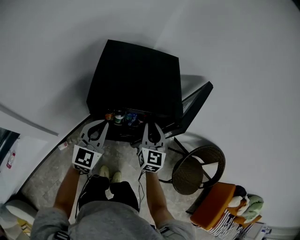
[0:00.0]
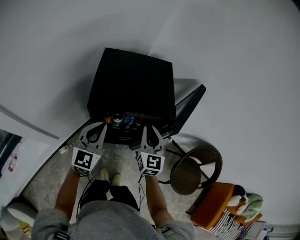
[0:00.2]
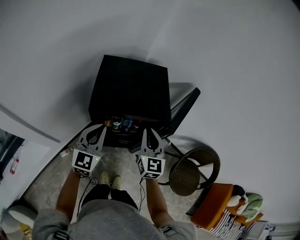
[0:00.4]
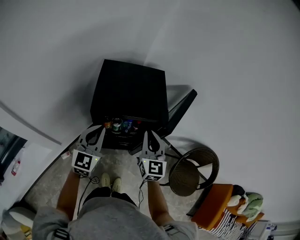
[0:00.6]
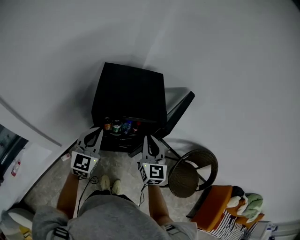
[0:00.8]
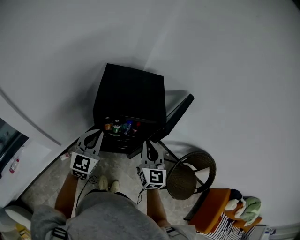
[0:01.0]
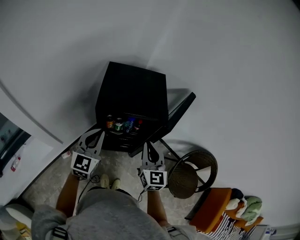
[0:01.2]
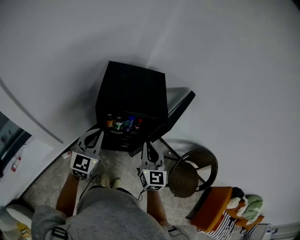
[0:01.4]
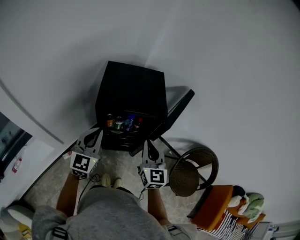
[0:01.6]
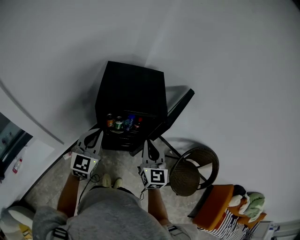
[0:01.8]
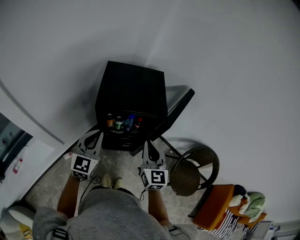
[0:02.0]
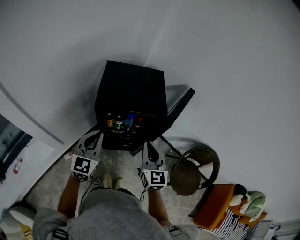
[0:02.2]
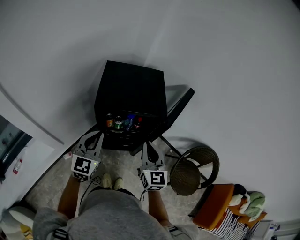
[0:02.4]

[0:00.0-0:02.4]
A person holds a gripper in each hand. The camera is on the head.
0:00.0 to 0:01.2: The left gripper shifts roughly 15 cm upward and backward. The right gripper goes about 15 cm backward and upward.
0:01.2 to 0:02.4: The grippers move only a little.

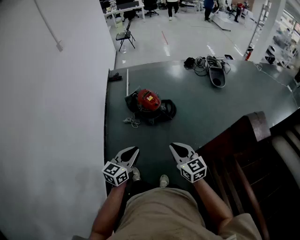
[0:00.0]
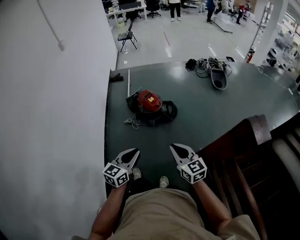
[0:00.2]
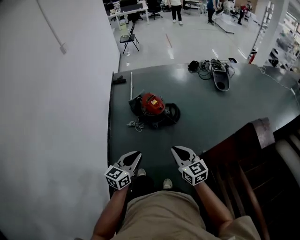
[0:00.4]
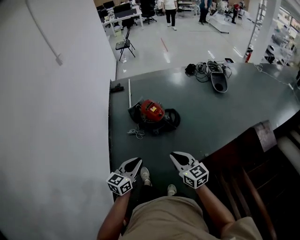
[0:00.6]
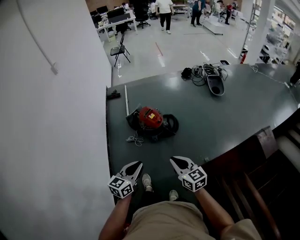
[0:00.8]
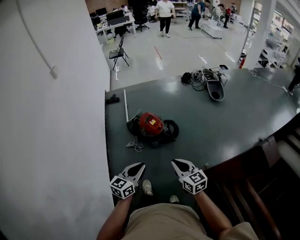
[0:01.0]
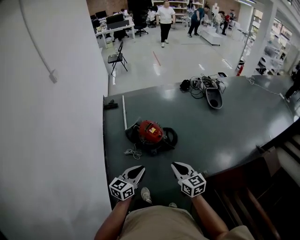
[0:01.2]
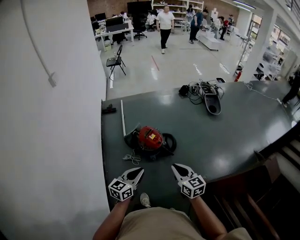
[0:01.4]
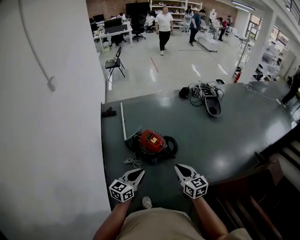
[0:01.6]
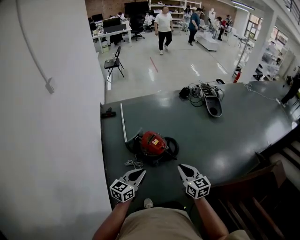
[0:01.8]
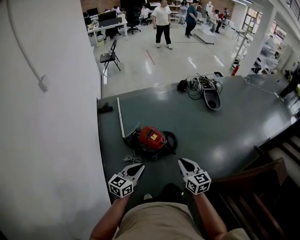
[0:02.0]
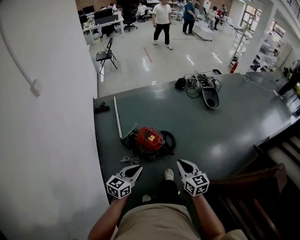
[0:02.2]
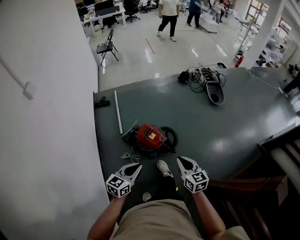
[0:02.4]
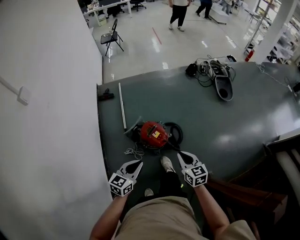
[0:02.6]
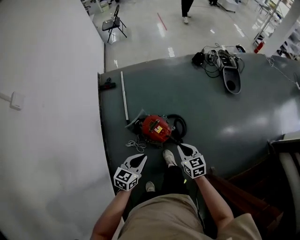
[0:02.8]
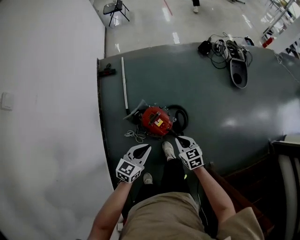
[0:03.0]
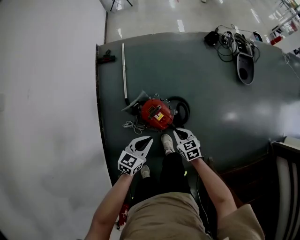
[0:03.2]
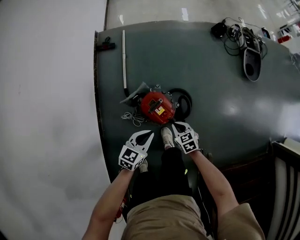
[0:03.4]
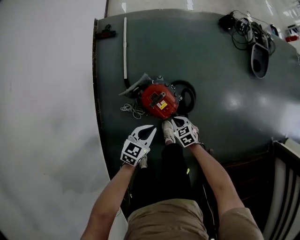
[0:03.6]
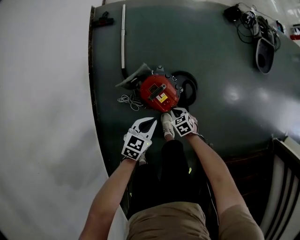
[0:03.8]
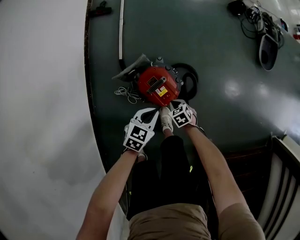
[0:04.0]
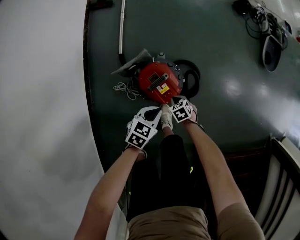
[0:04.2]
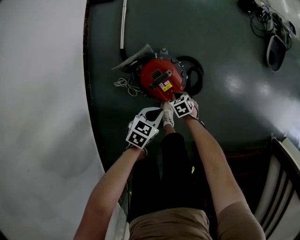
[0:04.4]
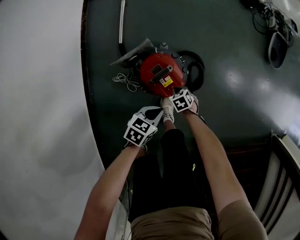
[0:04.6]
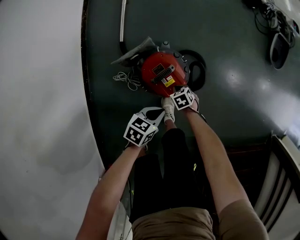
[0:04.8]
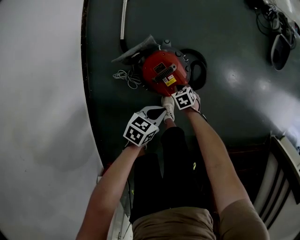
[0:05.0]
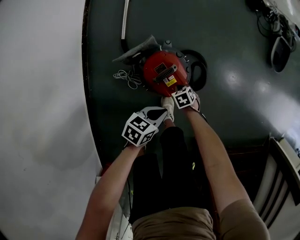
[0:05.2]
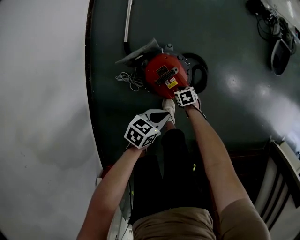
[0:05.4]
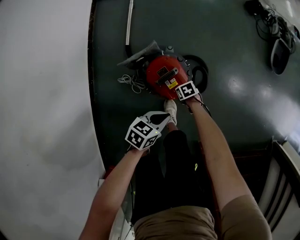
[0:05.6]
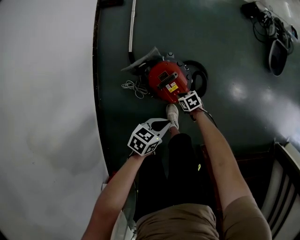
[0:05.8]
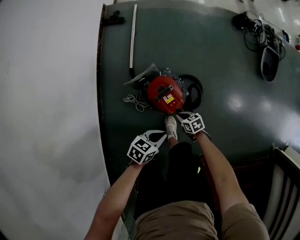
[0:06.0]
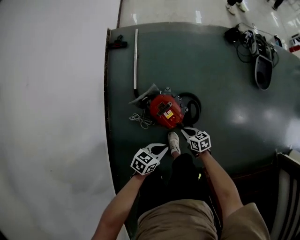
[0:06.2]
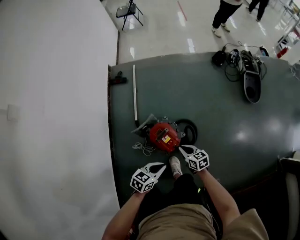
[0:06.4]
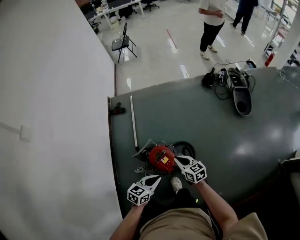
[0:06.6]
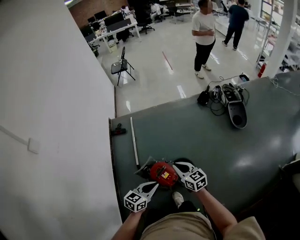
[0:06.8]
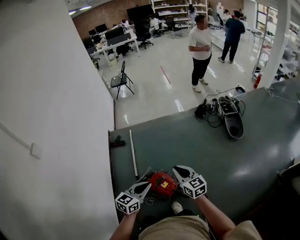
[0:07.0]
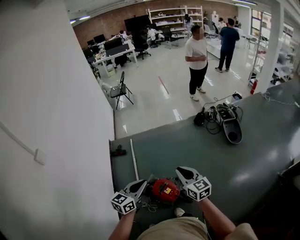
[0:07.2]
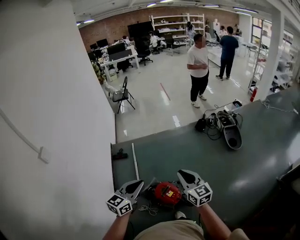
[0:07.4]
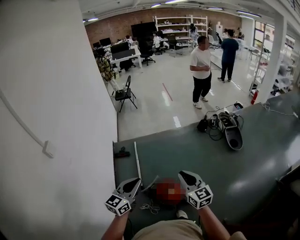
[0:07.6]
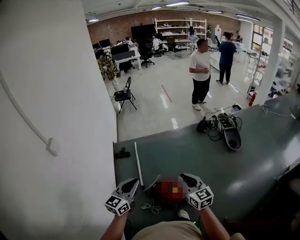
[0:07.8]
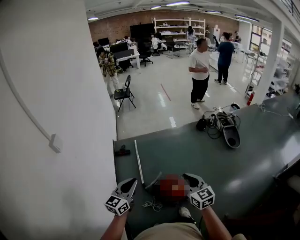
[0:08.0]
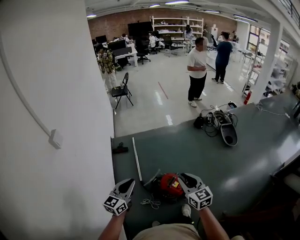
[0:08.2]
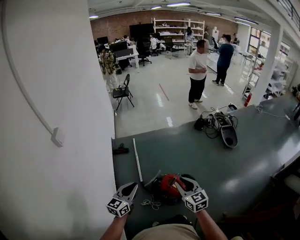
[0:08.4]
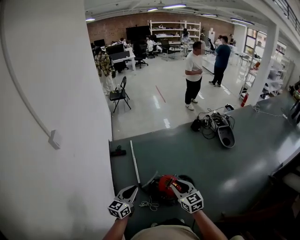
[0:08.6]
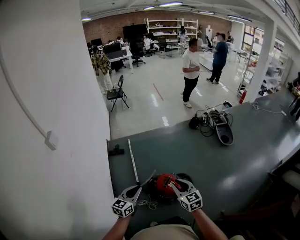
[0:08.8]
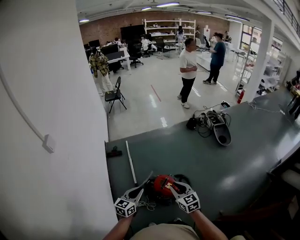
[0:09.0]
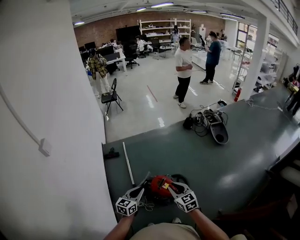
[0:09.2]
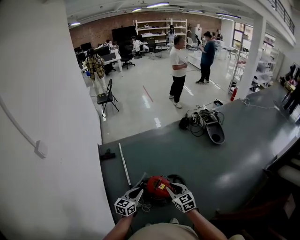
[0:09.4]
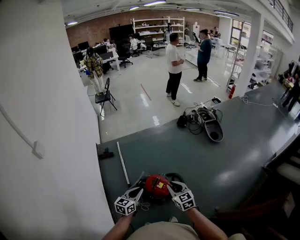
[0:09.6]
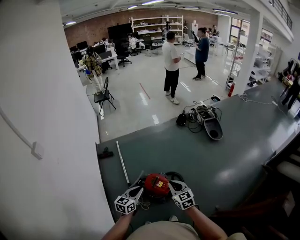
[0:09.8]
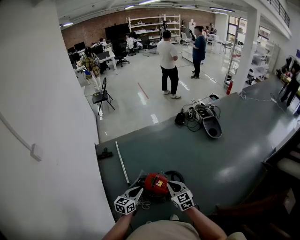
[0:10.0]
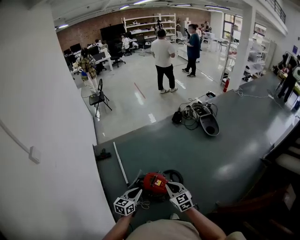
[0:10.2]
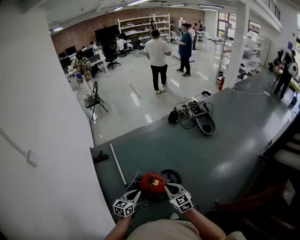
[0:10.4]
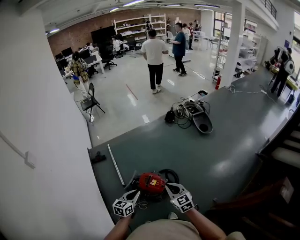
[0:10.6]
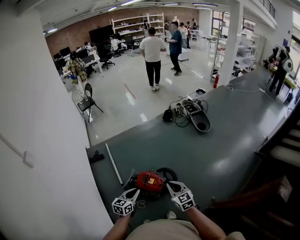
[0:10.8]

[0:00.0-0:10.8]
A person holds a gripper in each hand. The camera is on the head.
0:00.0 to 0:01.6: Both grippers travel together forward and to the left, approximately 30 cm.
0:01.6 to 0:03.0: The two grippers go approximately 40 cm forward and downward. The right gripper rotates approximately 20 degrees.
0:03.0 to 0:04.6: The two grippers go roughly 40 cm downward. The left gripper rotates about 30 degrees, while the right gripper tilts its fingers approximately 30 degrees downward.
0:04.6 to 0:06.2: The grippers both shift upward by roughly 20 cm. The right gripper points its fingers roughly 30 degrees further upward.
0:06.2 to 0:07.8: The two grippers go roughly 50 cm upward. The right gripper tilts its fingers roughly 30 degrees upward. The left gripper points its fingers approximately 40 degrees further upward.
0:07.8 to 0:09.2: The right gripper shifts roughly 15 cm downward and backward; the left gripper goes about 15 cm downward.
0:09.2 to 0:10.8: Both grippers travel together to the right, approximately 10 cm.

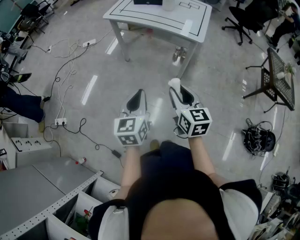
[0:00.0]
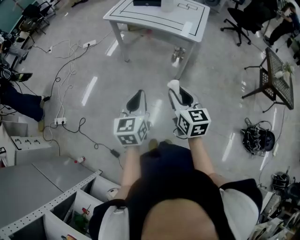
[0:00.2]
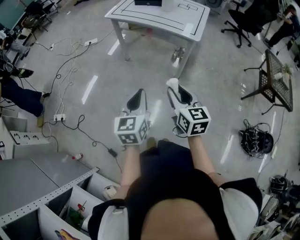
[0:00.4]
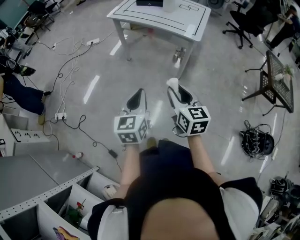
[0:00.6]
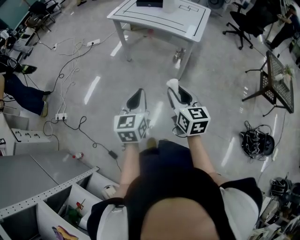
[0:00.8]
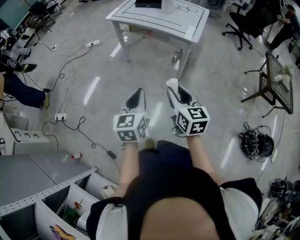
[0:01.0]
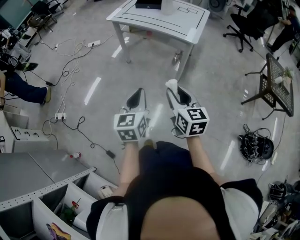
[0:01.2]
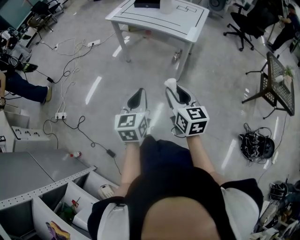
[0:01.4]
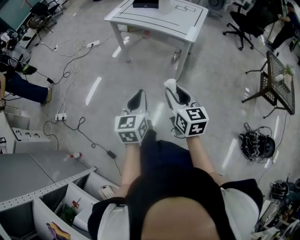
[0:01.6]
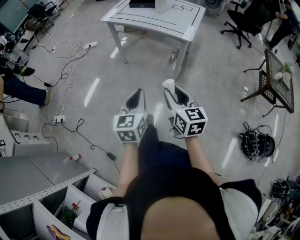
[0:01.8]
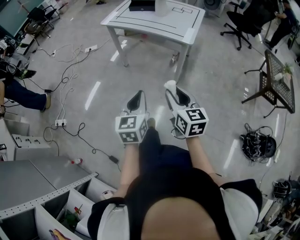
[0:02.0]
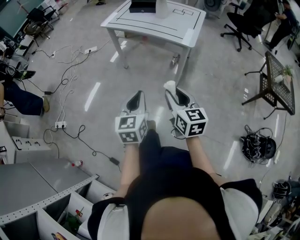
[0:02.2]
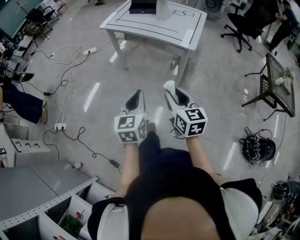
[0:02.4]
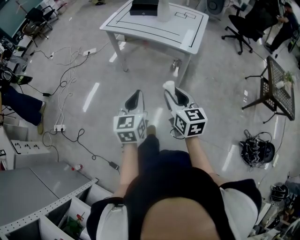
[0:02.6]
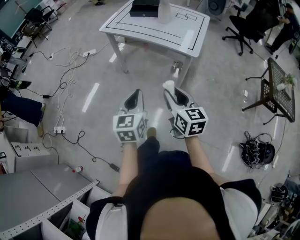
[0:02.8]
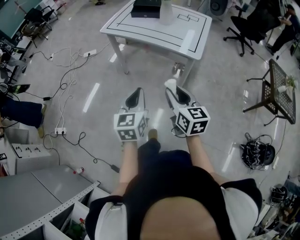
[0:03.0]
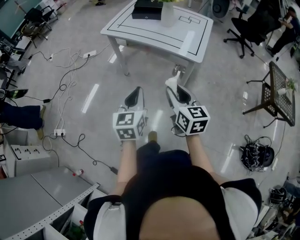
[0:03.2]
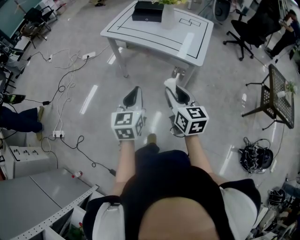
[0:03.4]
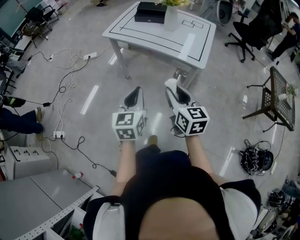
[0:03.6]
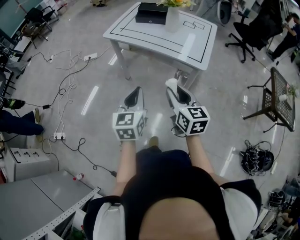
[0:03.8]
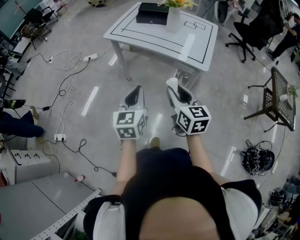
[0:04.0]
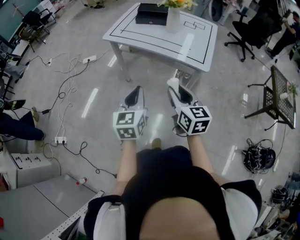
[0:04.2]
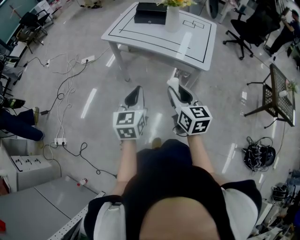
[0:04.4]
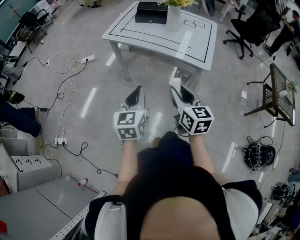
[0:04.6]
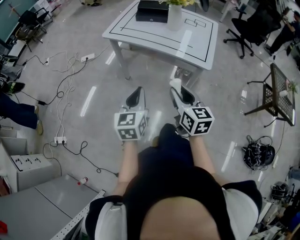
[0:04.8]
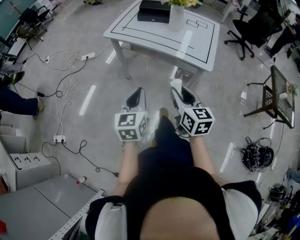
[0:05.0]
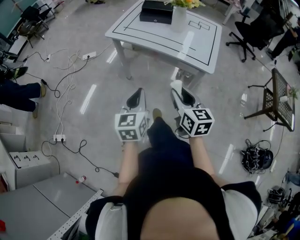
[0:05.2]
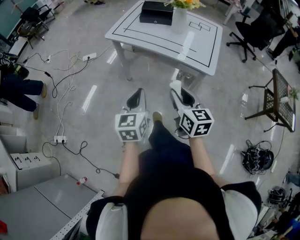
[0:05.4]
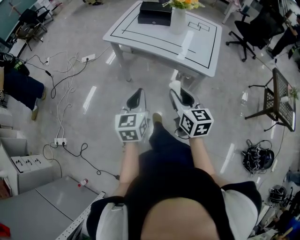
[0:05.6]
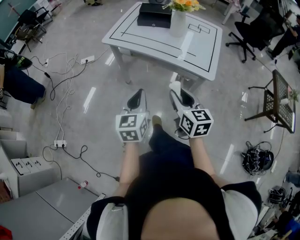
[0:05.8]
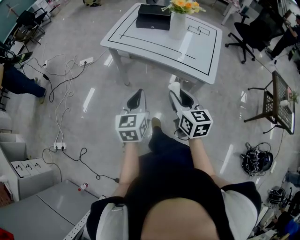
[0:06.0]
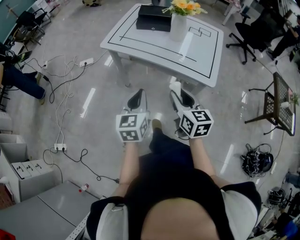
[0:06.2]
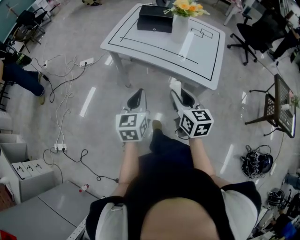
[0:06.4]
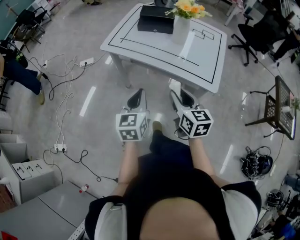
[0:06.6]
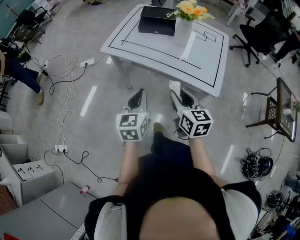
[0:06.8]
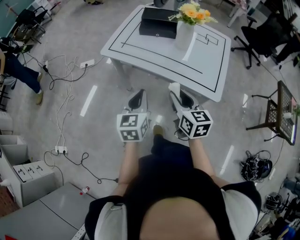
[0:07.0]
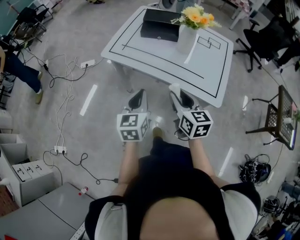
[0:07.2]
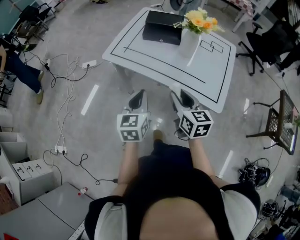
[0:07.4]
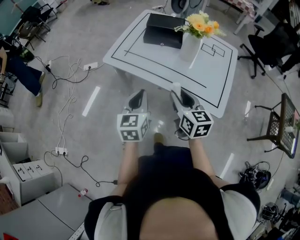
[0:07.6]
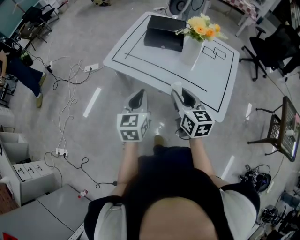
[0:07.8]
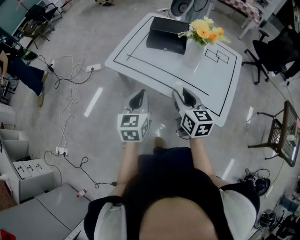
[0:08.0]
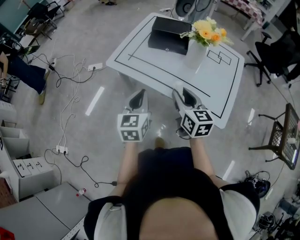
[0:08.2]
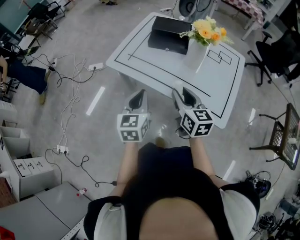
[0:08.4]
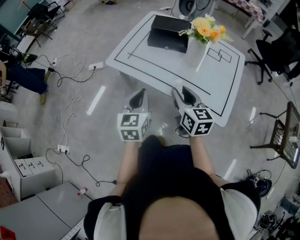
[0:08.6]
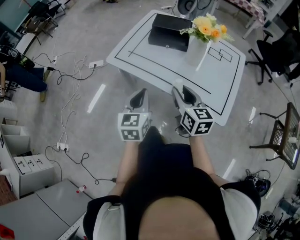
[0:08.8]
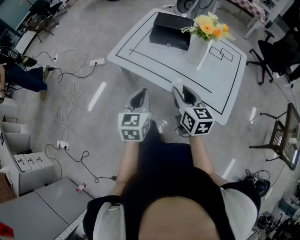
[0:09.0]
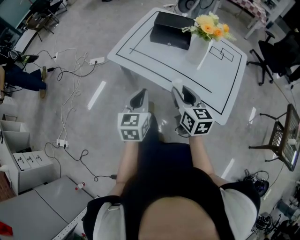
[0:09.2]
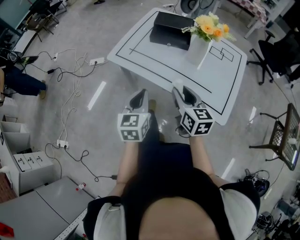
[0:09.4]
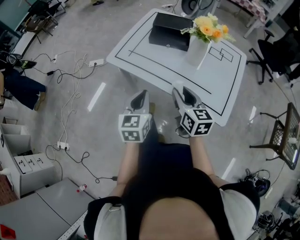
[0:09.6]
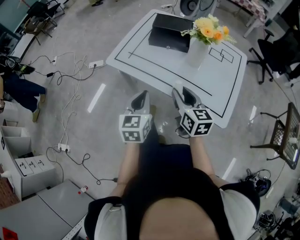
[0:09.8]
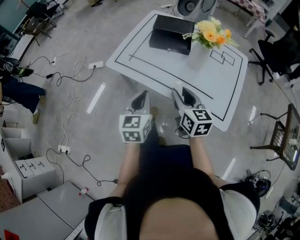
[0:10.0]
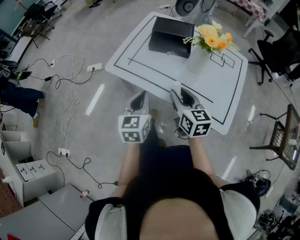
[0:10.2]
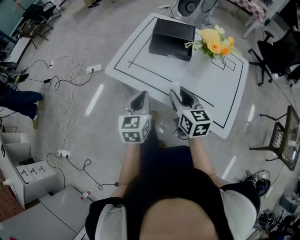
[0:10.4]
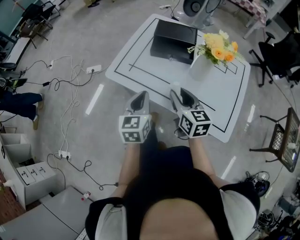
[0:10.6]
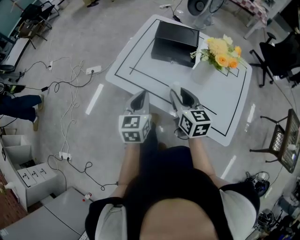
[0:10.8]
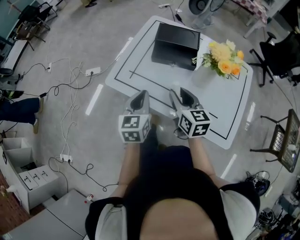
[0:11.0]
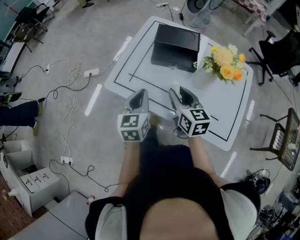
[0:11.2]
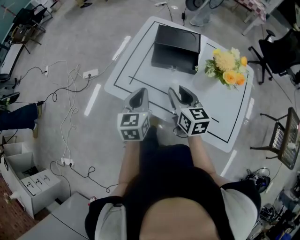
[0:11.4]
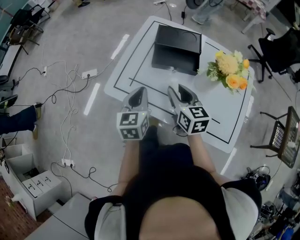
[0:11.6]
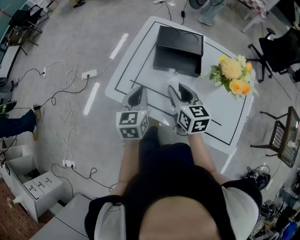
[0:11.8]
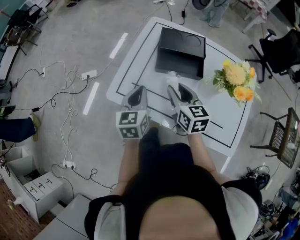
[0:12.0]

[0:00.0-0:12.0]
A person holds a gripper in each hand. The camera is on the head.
0:00.0 to 0:01.6: The two grippers go approximately 10 cm backward and to the right.
0:01.6 to 0:03.0: The two grippers go about 15 cm forward.
0:03.0 to 0:04.4: The right gripper is displaced forward by approximately 10 cm, while the left gripper goes approximately 10 cm forward and to the left.
0:04.4 to 0:06.0: Both grippers move forward, approximately 10 cm.
0:06.0 to 0:07.6: Both grippers move forward, roughly 20 cm.
0:07.6 to 0:09.0: The grippers stay close to where they were, moving slightly.
0:09.0 to 0:10.4: The grippers both shift forward by roughly 10 cm.
0:10.4 to 0:12.0: Both grippers travel together forward, roughly 20 cm.
